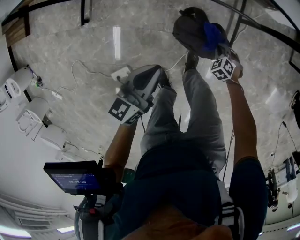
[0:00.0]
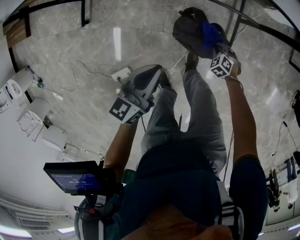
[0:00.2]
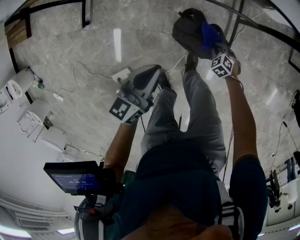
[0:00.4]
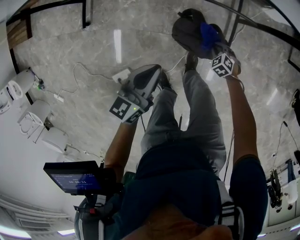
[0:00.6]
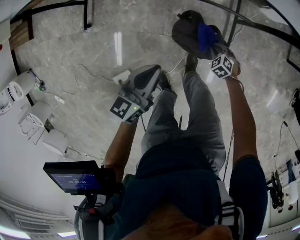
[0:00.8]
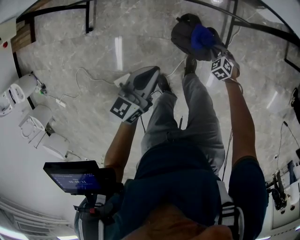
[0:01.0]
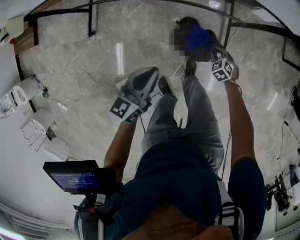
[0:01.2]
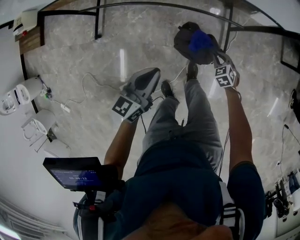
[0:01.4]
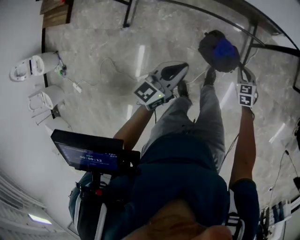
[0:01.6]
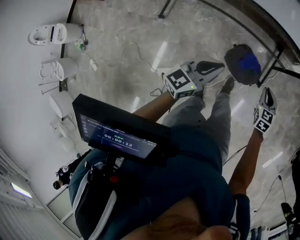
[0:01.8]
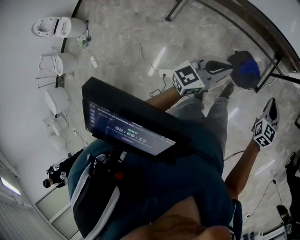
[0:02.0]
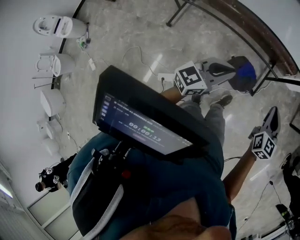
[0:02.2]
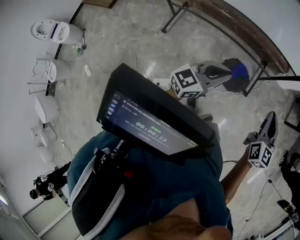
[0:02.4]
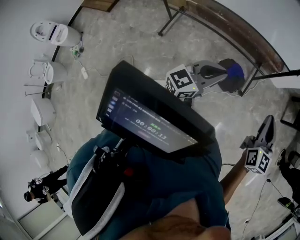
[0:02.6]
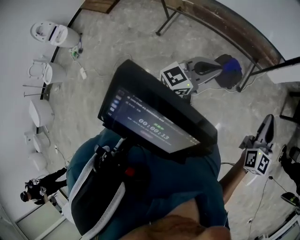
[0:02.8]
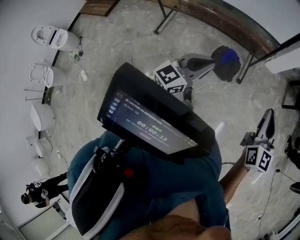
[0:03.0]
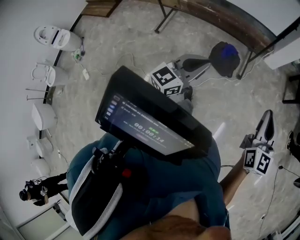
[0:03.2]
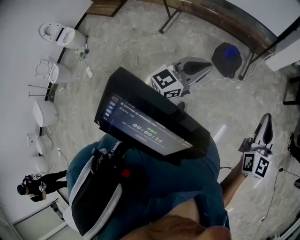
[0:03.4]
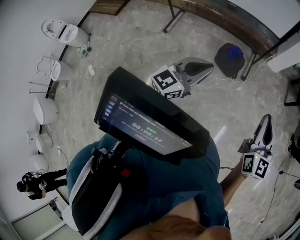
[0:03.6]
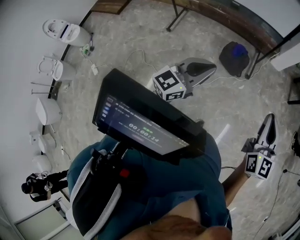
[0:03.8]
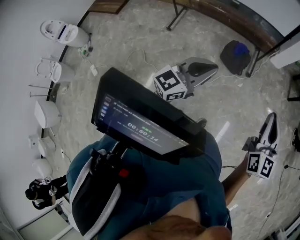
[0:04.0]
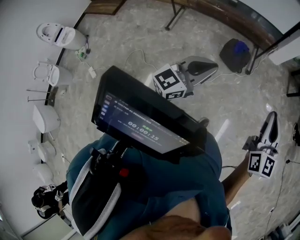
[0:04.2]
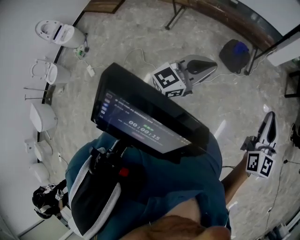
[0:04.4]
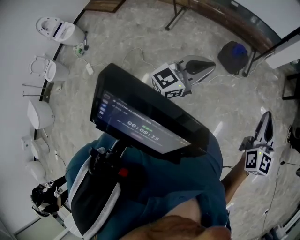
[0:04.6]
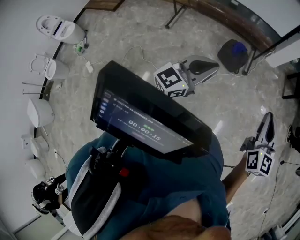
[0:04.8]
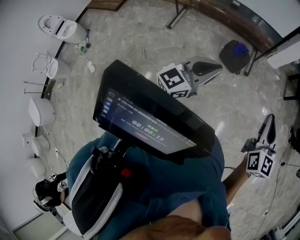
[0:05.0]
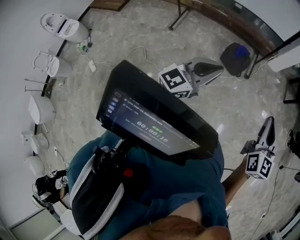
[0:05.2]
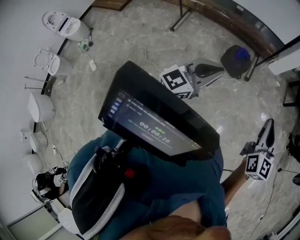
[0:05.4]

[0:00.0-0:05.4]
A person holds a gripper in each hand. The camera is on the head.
0:00.0 to 0:01.4: The two grippers go approximately 10 cm upward.
0:01.4 to 0:02.8: The left gripper is displaced upward and backward by some 35 cm, and changes its angle by about 30 degrees. The right gripper travels upward and backward by some 70 cm, and angles its fingers upward, by some 60 degrees.
0:02.8 to 0:04.0: Both grippers move backward, some 30 cm.
0:04.0 to 0:05.4: There are only small adjustments of the grippers.

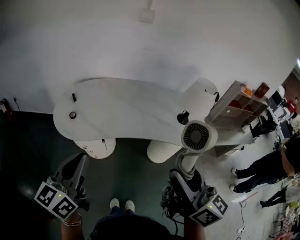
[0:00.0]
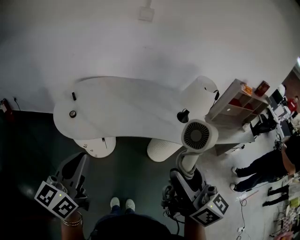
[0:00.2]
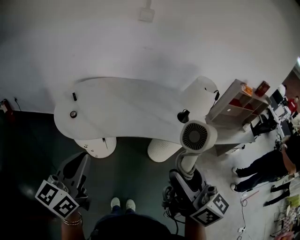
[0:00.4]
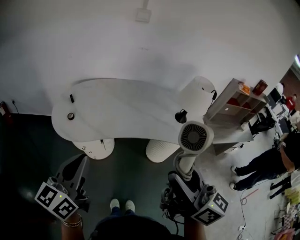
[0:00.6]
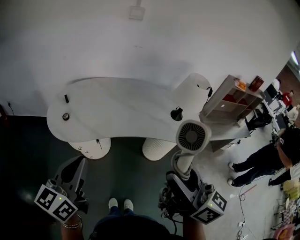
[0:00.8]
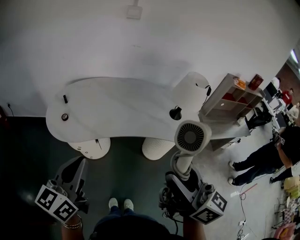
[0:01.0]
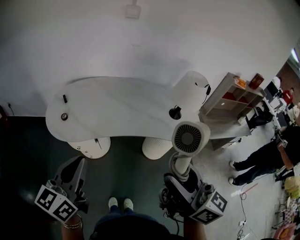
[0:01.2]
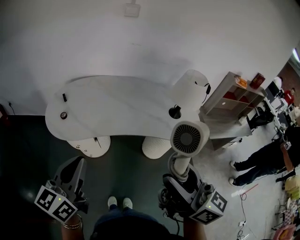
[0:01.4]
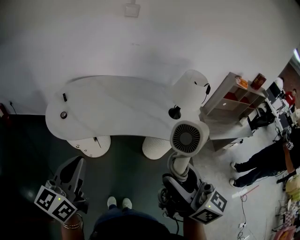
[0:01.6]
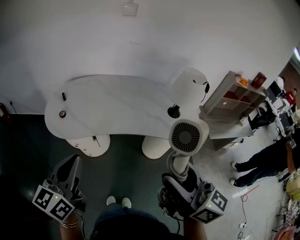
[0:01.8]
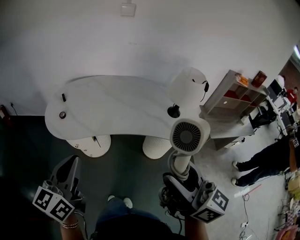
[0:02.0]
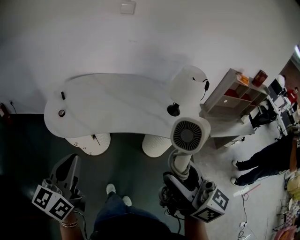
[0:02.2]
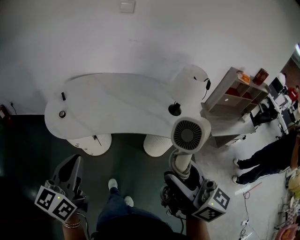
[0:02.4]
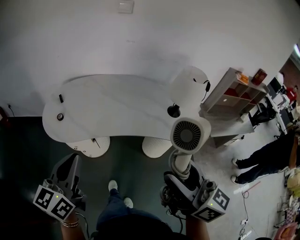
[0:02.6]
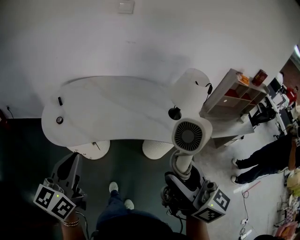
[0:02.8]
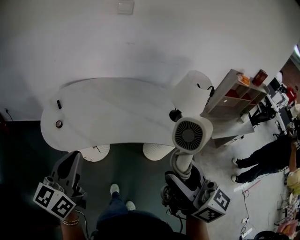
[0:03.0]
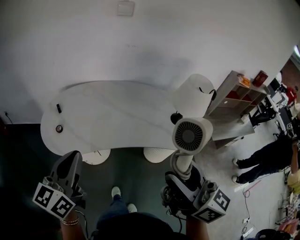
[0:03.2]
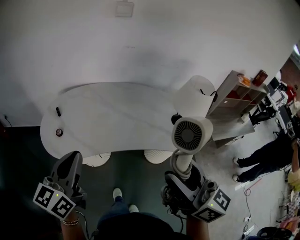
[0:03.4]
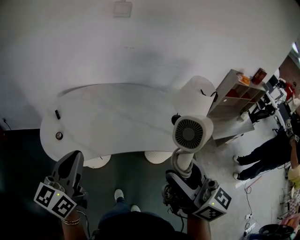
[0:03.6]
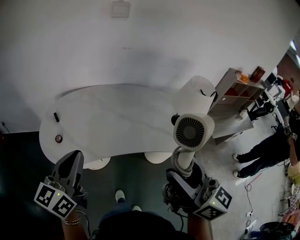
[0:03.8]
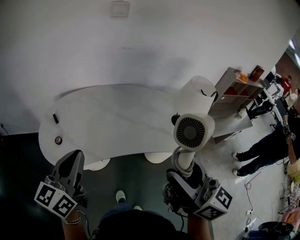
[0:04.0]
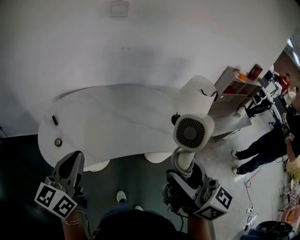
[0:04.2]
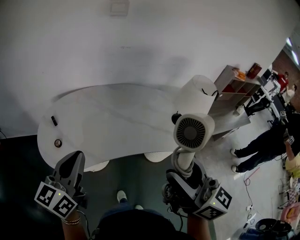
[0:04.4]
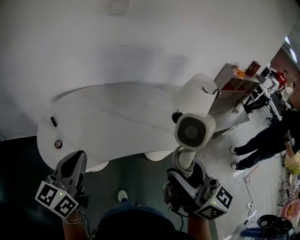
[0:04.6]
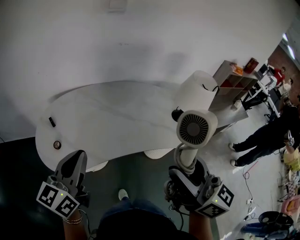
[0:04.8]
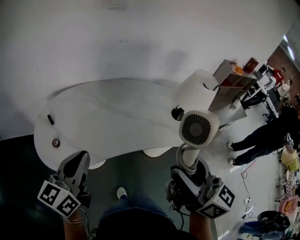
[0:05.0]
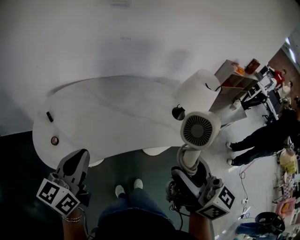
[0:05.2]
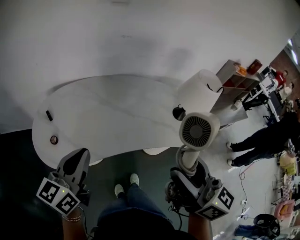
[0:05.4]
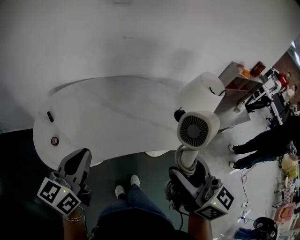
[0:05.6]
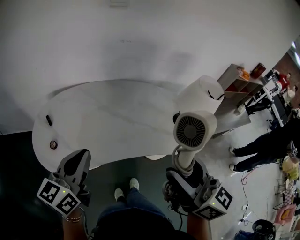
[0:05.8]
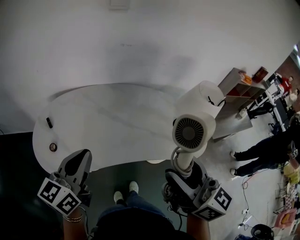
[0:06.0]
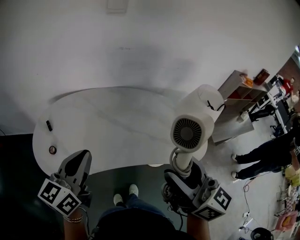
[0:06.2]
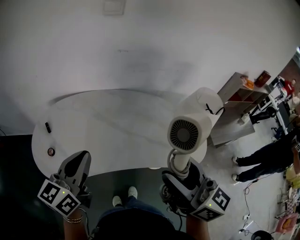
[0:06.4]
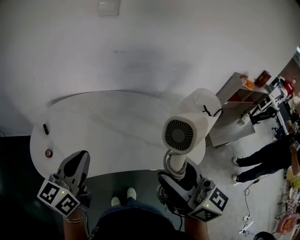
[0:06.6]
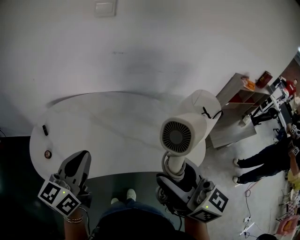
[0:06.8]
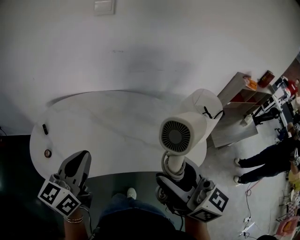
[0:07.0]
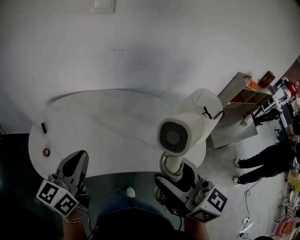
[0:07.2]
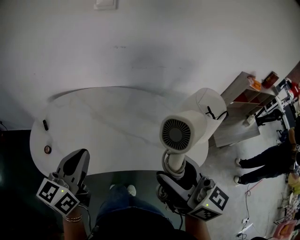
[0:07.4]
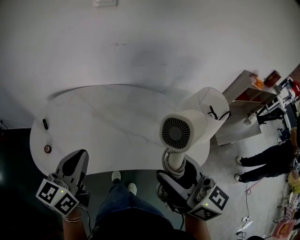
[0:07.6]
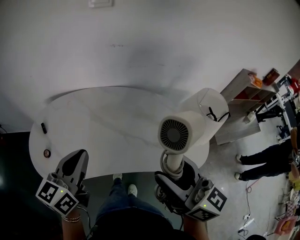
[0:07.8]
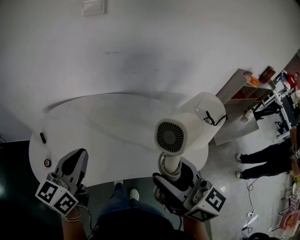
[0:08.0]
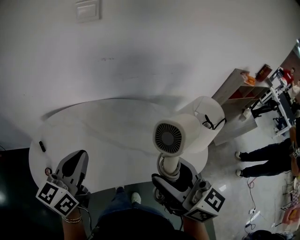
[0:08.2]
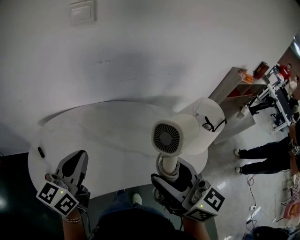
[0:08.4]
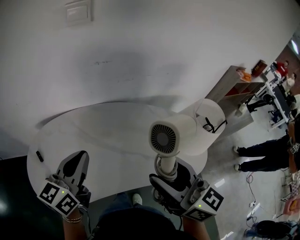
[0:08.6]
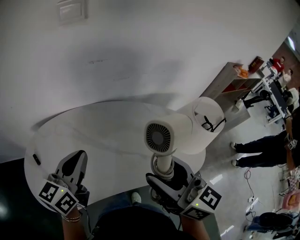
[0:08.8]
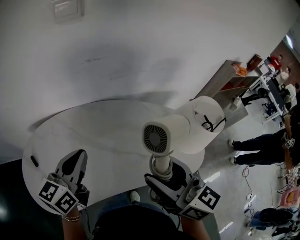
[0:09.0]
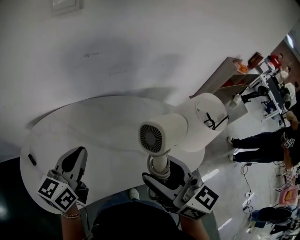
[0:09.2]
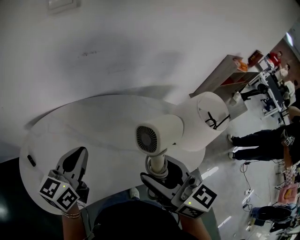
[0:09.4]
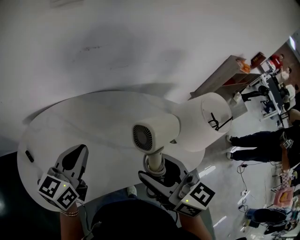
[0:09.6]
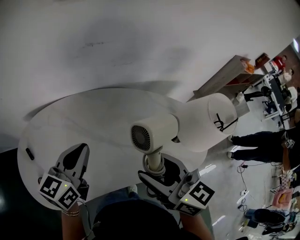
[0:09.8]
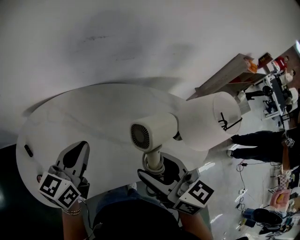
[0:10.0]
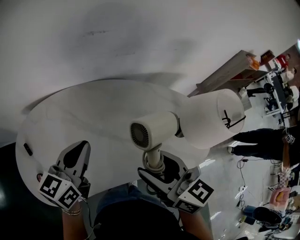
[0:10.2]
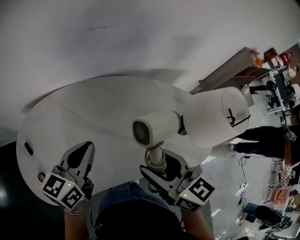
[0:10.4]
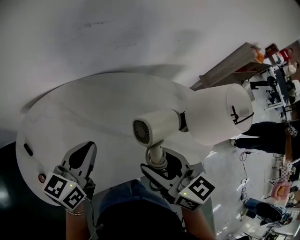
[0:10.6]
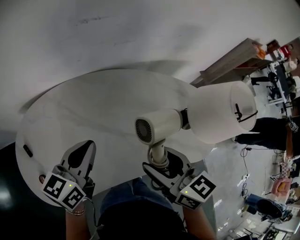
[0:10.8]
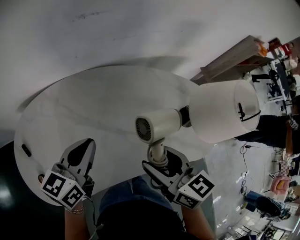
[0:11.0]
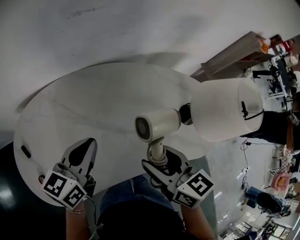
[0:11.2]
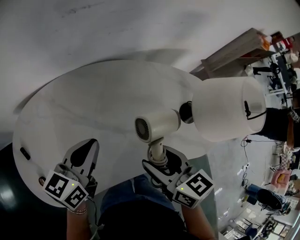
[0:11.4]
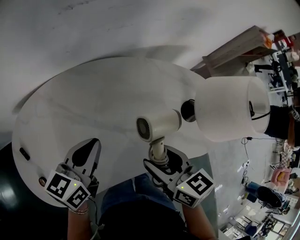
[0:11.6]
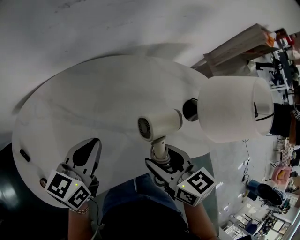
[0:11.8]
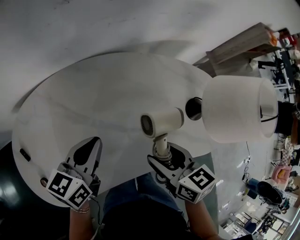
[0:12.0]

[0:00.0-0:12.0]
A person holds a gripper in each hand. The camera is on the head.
0:00.0 to 0:01.6: The left gripper is displaced to the right by roughly 5 cm.
0:01.6 to 0:03.0: Both grippers travel together forward, roughly 10 cm.
0:03.0 to 0:04.4: Both grippers travel together forward, about 10 cm.
0:04.4 to 0:06.0: The two grippers go roughly 5 cm forward.
0:06.0 to 0:07.6: The right gripper shifts approximately 10 cm forward and to the right; the left gripper heads to the right, covering some 5 cm.
0:07.6 to 0:09.0: The right gripper is displaced forward by approximately 10 cm, while the left gripper heads forward, covering some 15 cm.
0:09.0 to 0:10.4: The two grippers go about 10 cm downward.
0:10.4 to 0:12.0: The right gripper goes approximately 15 cm downward, and changes its angle by approximately 20 degrees; the left gripper shifts roughly 10 cm downward.

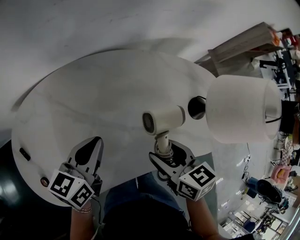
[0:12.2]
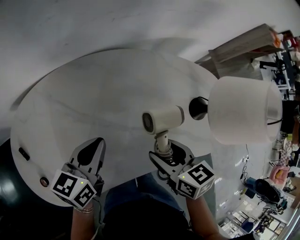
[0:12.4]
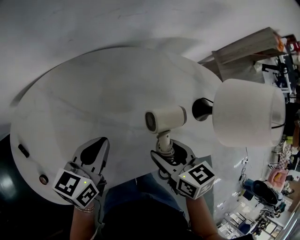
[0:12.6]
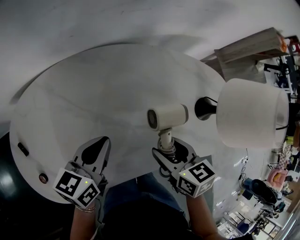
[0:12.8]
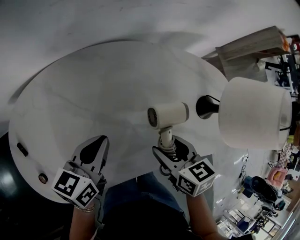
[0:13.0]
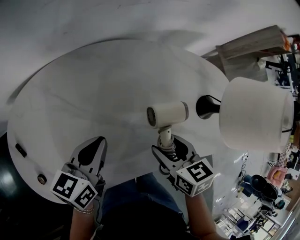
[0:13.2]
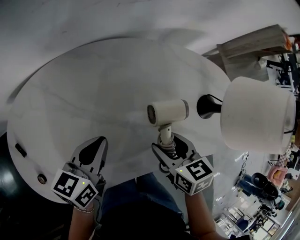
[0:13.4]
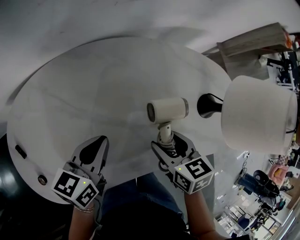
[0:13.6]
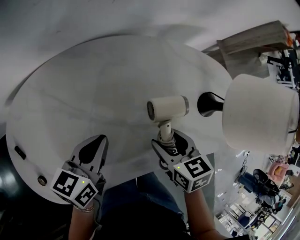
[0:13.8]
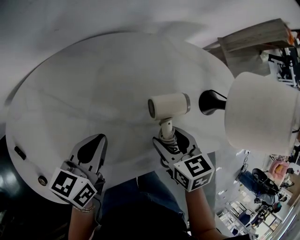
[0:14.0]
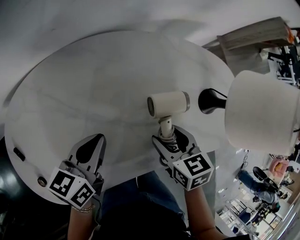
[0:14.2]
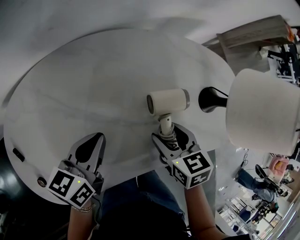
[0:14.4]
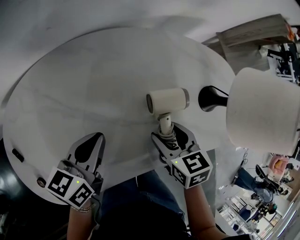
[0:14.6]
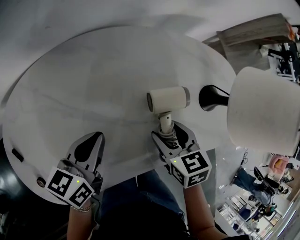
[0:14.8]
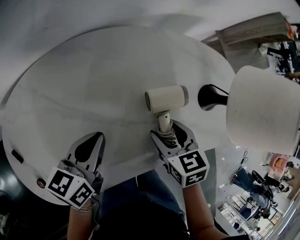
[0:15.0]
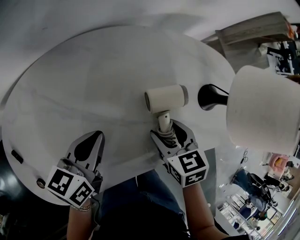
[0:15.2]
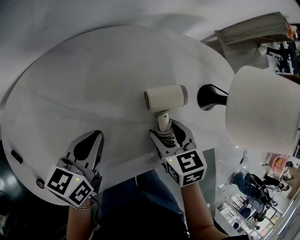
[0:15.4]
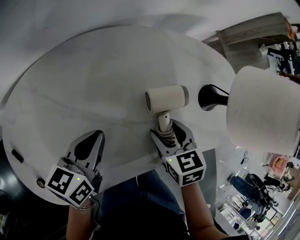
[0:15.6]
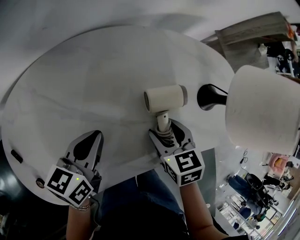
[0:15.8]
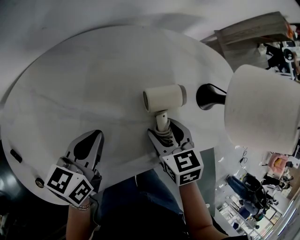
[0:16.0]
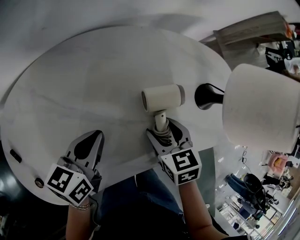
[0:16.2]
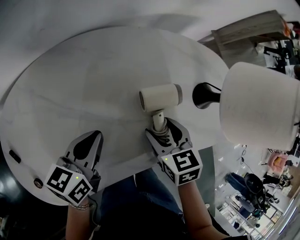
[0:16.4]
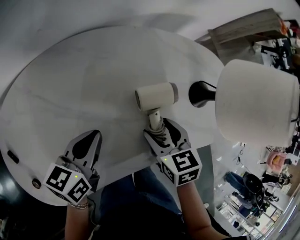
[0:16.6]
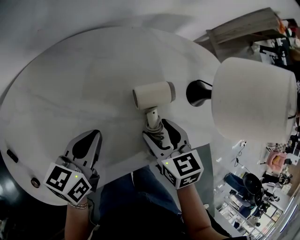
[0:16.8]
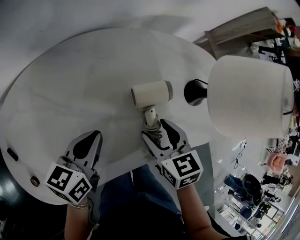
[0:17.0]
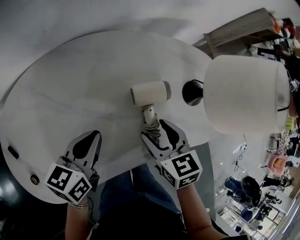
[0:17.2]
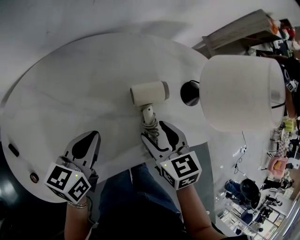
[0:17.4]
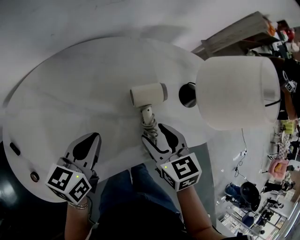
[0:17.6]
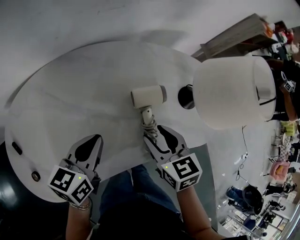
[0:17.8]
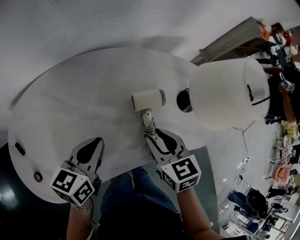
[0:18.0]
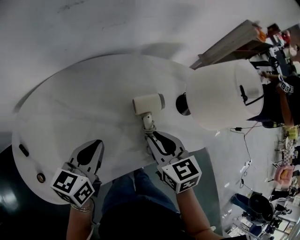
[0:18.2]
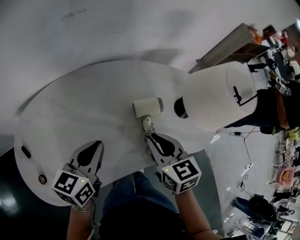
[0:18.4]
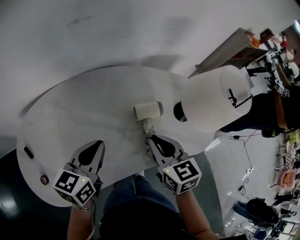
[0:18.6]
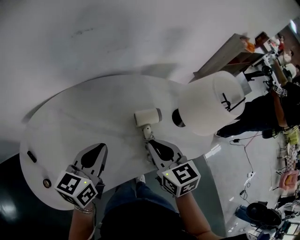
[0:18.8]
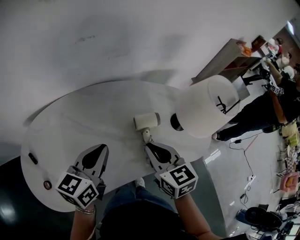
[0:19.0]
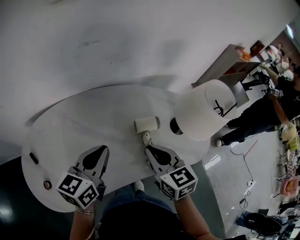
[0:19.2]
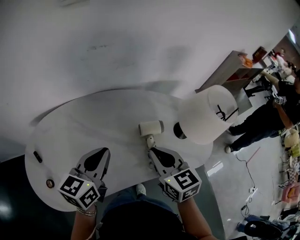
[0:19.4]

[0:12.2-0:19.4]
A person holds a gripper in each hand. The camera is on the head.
0:12.2 to 0:13.6: Both grippers move downward, about 5 cm.
0:13.6 to 0:16.6: There are only small adjustments of the grippers.
0:16.6 to 0:18.0: The grippers both shift upward by some 5 cm. The right gripper closes its fingers.
0:18.0 to 0:19.4: Both grippers move upward, about 10 cm. The right gripper closes its fingers.
